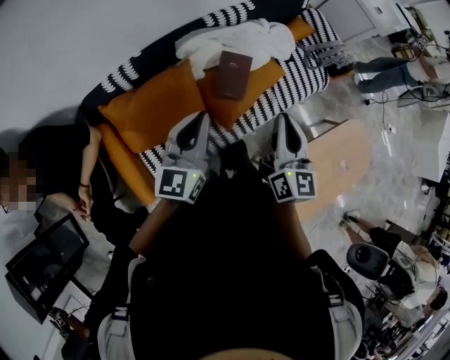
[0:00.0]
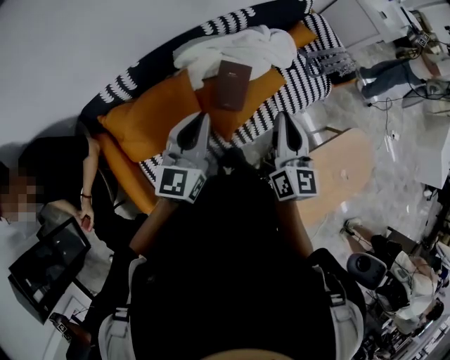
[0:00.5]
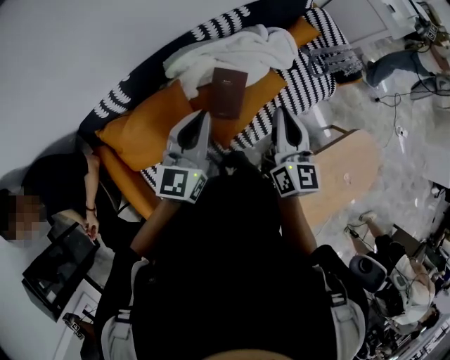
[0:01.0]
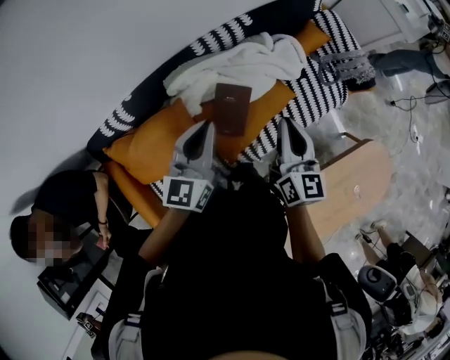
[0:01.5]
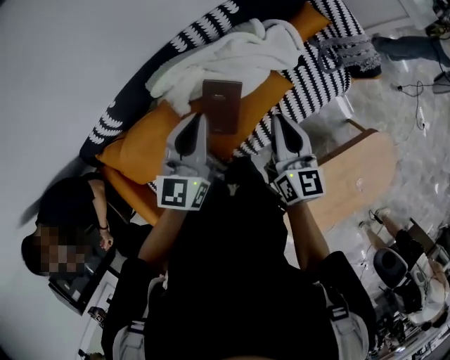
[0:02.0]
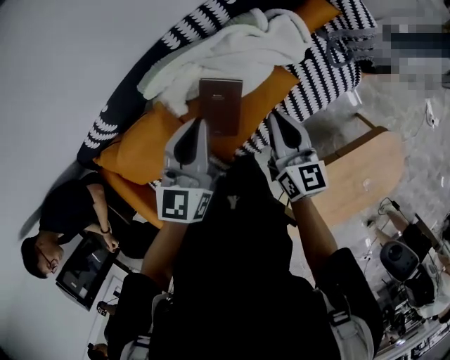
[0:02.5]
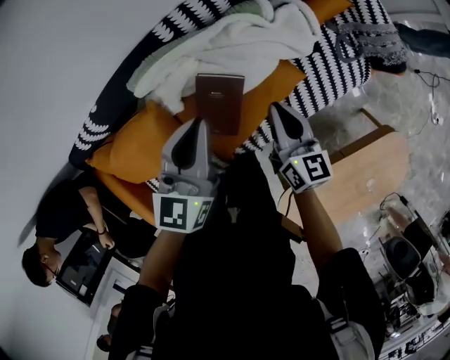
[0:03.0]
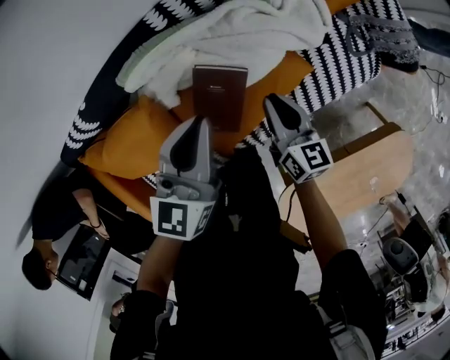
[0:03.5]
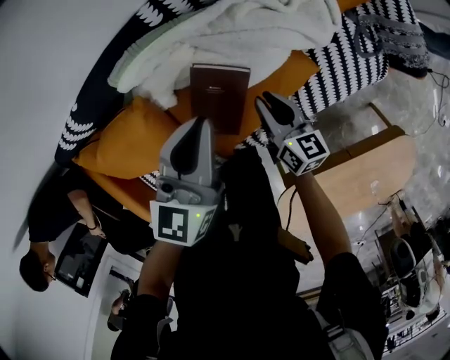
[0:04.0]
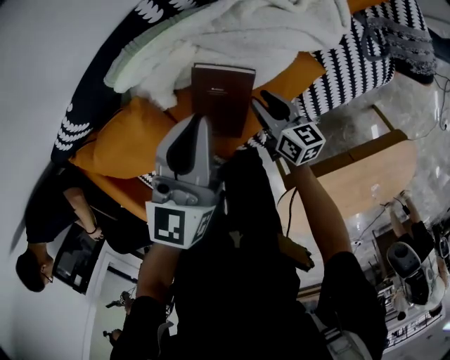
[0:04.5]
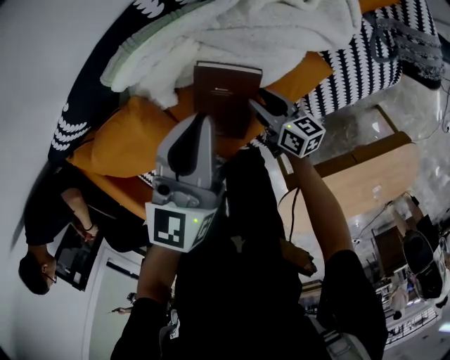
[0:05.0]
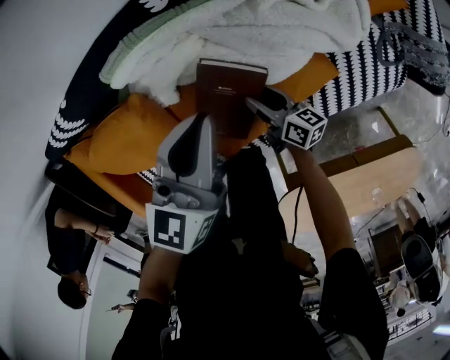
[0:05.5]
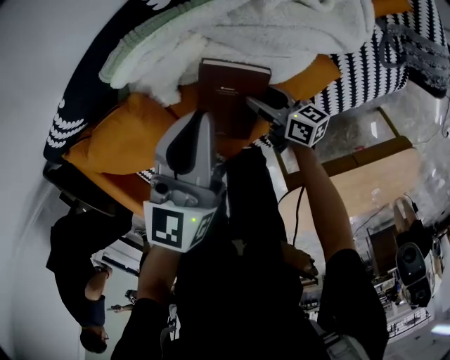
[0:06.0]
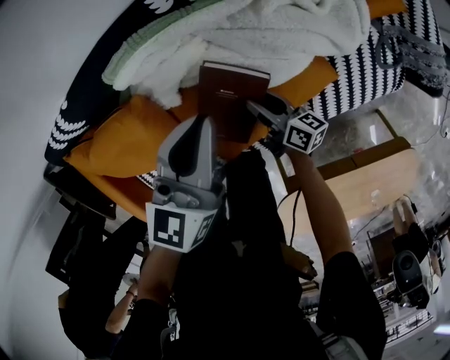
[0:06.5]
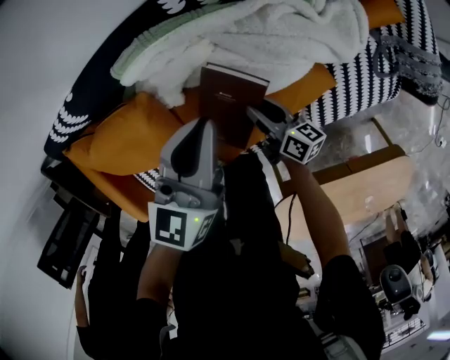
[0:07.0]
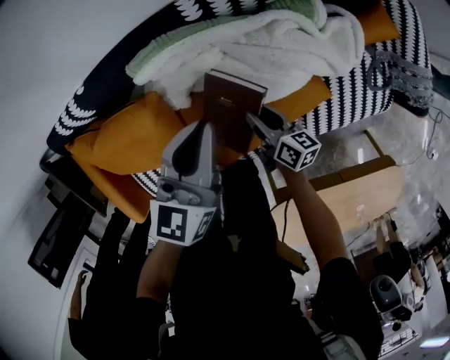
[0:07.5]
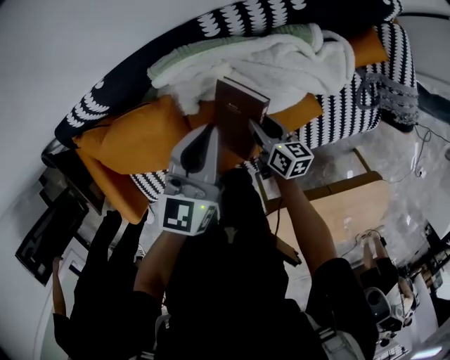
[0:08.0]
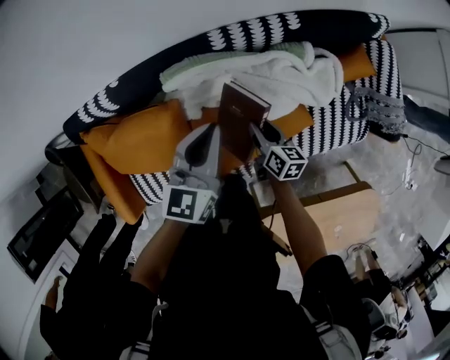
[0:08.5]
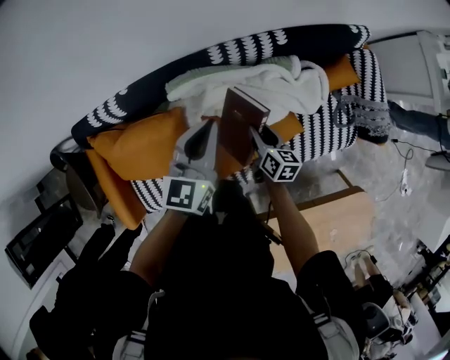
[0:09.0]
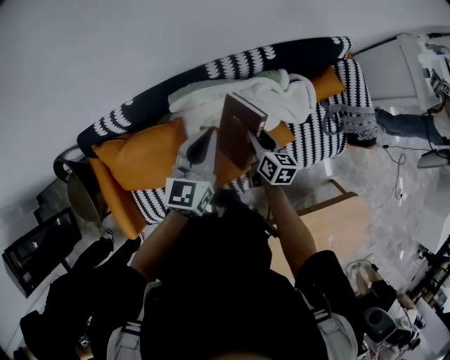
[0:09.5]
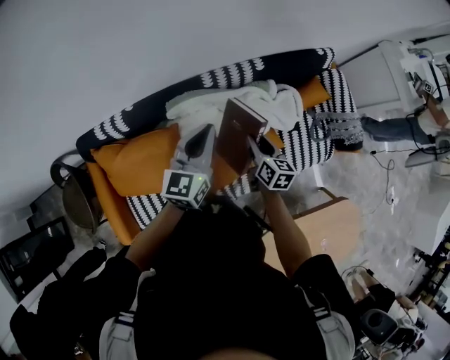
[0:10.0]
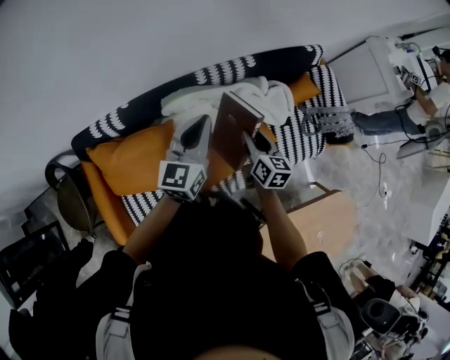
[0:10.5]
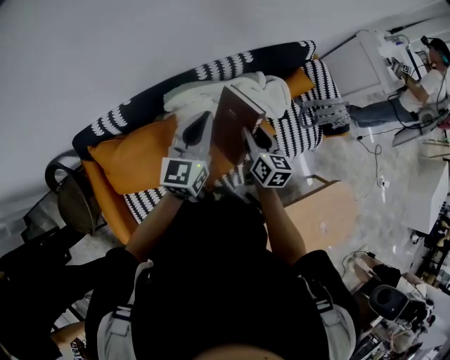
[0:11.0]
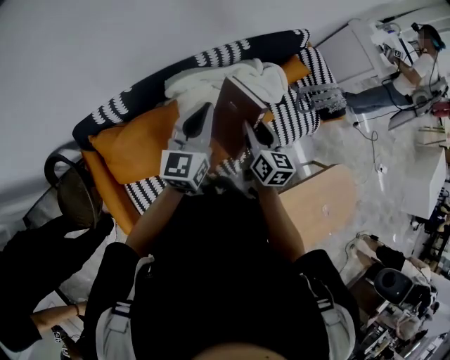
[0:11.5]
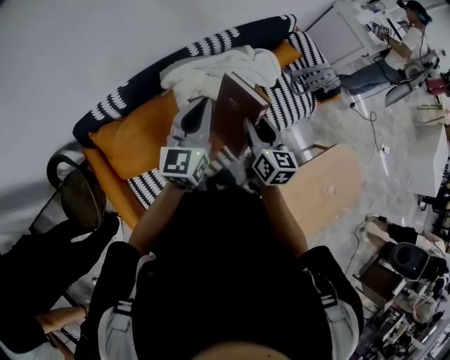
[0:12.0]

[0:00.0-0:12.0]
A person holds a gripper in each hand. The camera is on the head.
0:00.0 to 0:02.0: The left gripper is displaced forward and to the right by about 30 cm, while the right gripper goes approximately 30 cm forward and downward.
0:02.0 to 0:04.0: The left gripper moves downward, about 15 cm, while the right gripper travels downward by about 30 cm, and changes its angle by approximately 30 degrees.
0:04.0 to 0:06.0: The right gripper goes approximately 15 cm downward and to the left, swivels about 30 degrees, and opens. The left gripper is displaced downward by some 5 cm.
0:06.0 to 0:08.0: The right gripper shifts roughly 10 cm upward. The left gripper shifts roughly 5 cm upward.
0:08.0 to 0:10.0: The grippers both shift upward by some 20 cm. The right gripper changes its angle by approximately 20 degrees.
0:10.0 to 0:12.0: Both grippers travel together backward and upward, roughly 25 cm. The right gripper turns by roughly 20 degrees.

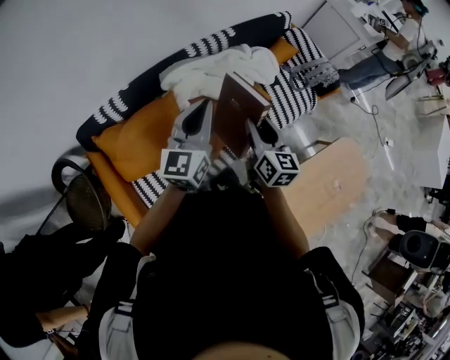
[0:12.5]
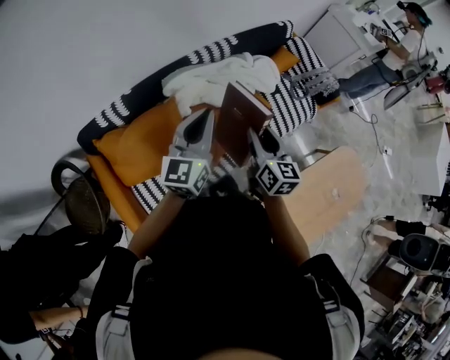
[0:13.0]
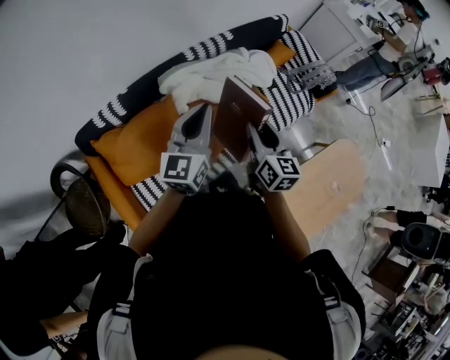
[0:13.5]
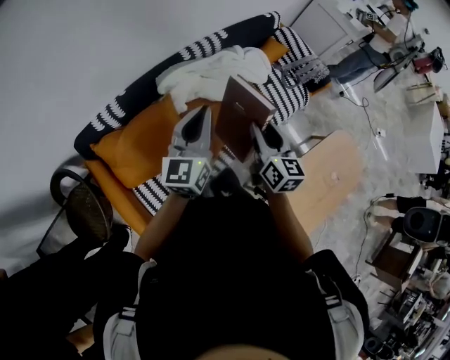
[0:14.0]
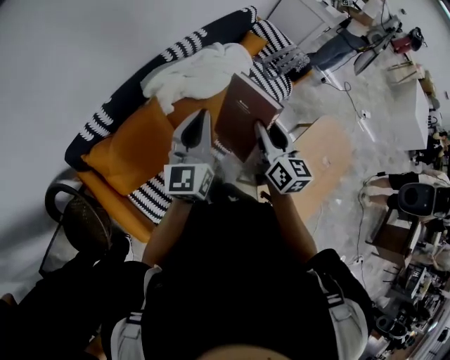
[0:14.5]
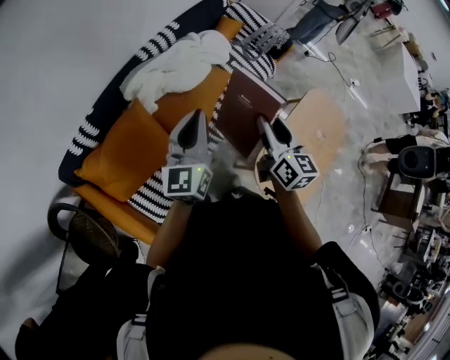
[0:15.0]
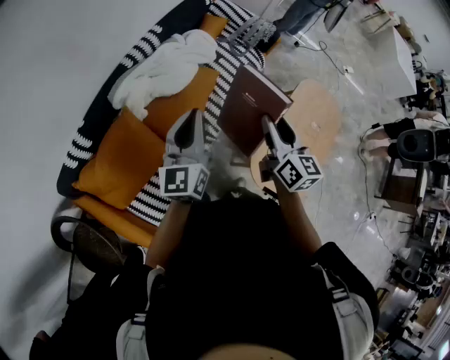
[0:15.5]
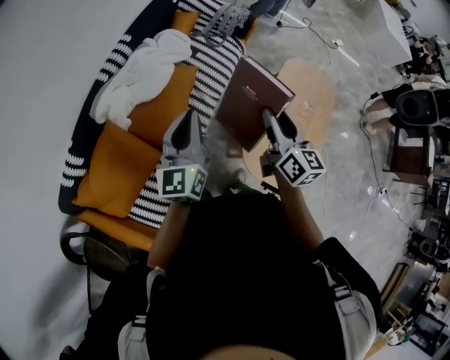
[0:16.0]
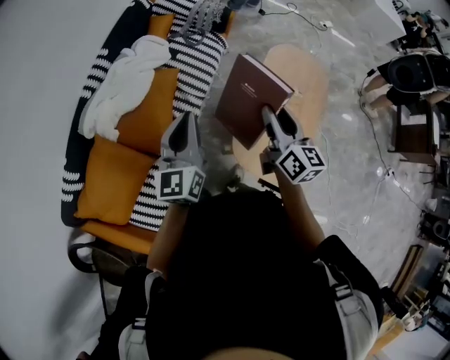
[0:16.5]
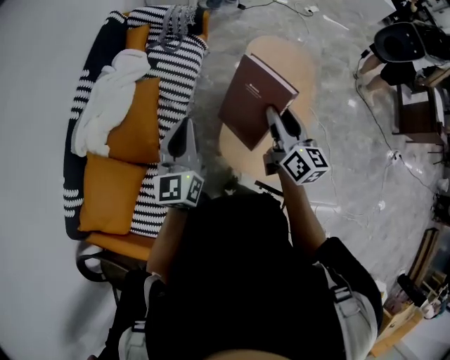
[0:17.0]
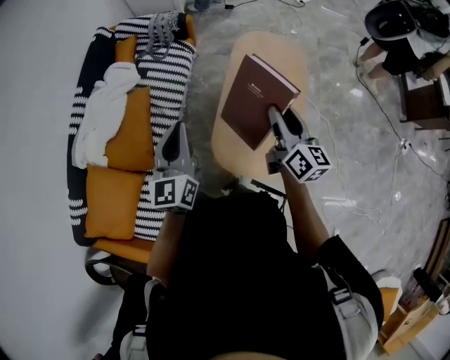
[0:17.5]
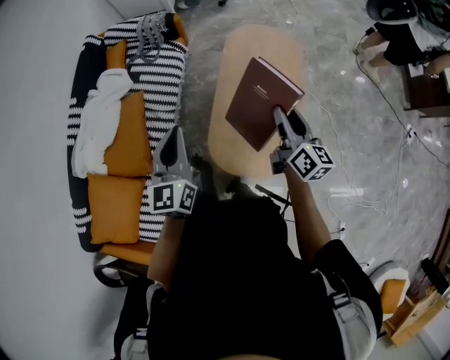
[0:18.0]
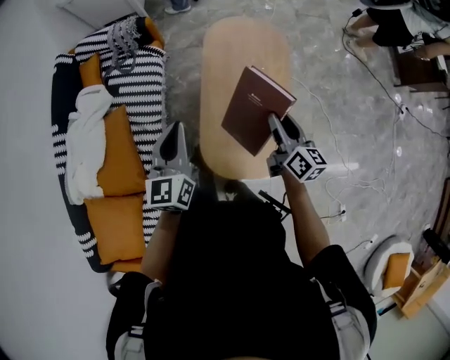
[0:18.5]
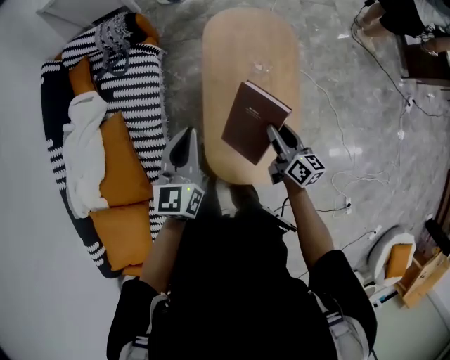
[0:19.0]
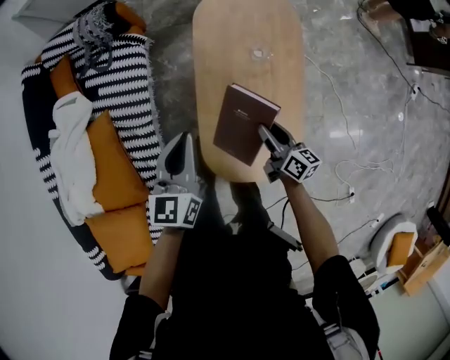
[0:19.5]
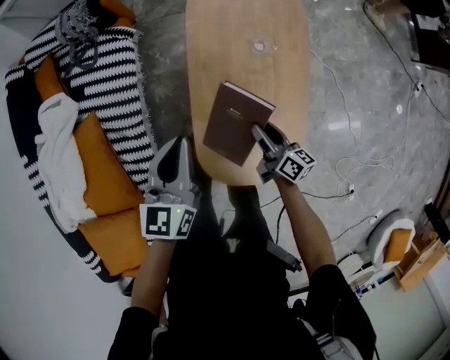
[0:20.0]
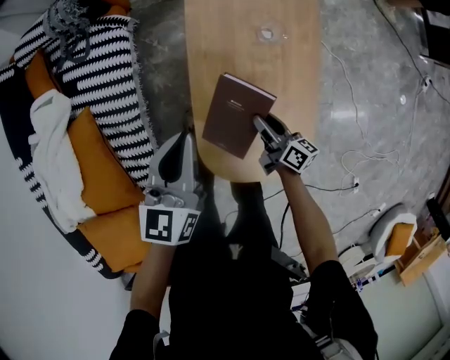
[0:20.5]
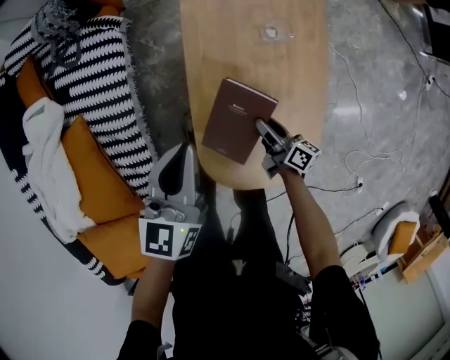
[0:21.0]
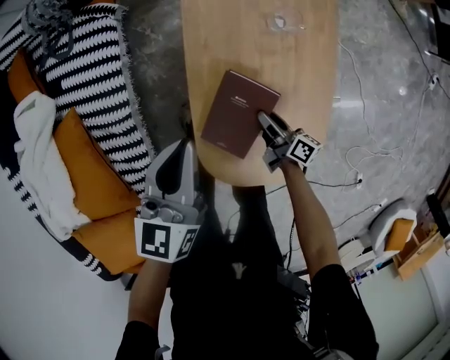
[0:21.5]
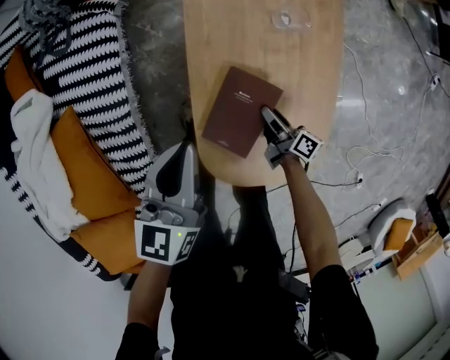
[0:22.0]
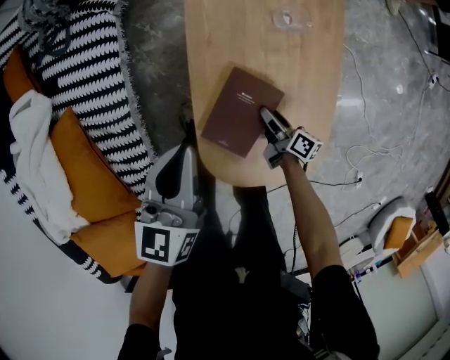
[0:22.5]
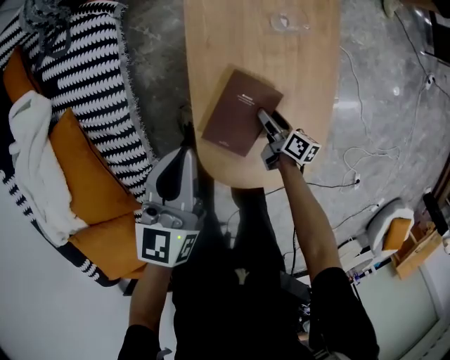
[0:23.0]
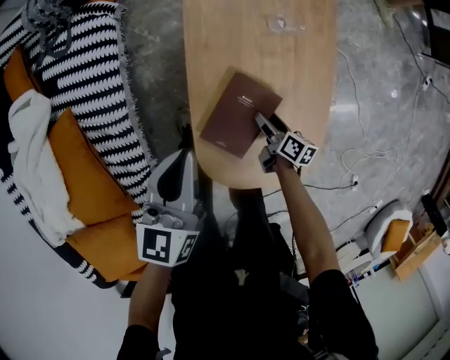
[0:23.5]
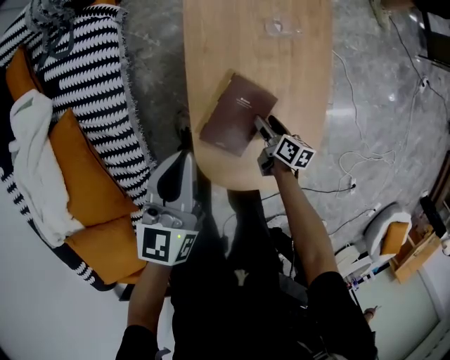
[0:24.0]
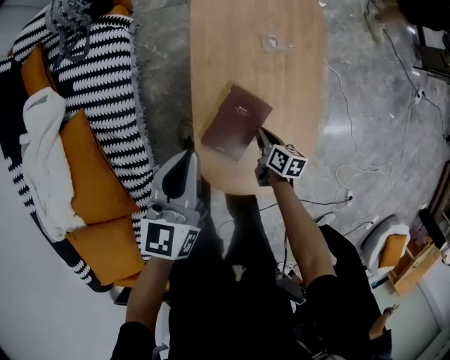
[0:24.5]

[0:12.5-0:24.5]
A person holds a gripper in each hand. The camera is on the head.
0:12.5 to 0:14.5: The left gripper is displaced backward by some 5 cm. Meanwhile the right gripper is displaced backward and upward by roughly 10 cm.
0:14.5 to 0:16.5: The grippers both shift to the right by some 30 cm. The right gripper swivels some 30 degrees, while the left gripper rotates roughly 20 degrees.
0:16.5 to 0:18.5: The left gripper goes approximately 30 cm to the right and forward, and swivels approximately 20 degrees. The right gripper shifts some 35 cm to the right and downward, and changes its angle by about 20 degrees.
0:18.5 to 0:20.5: The right gripper goes about 35 cm downward, and changes its angle by about 20 degrees. Meanwhile the left gripper is displaced downward by about 20 cm.
0:20.5 to 0:22.5: The right gripper travels downward by some 15 cm. The left gripper goes roughly 10 cm downward.
0:22.5 to 0:24.5: The right gripper turns by roughly 30 degrees, and closes its fingers. The left gripper moves upward, about 5 cm.

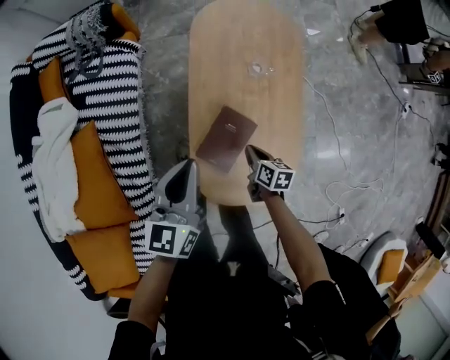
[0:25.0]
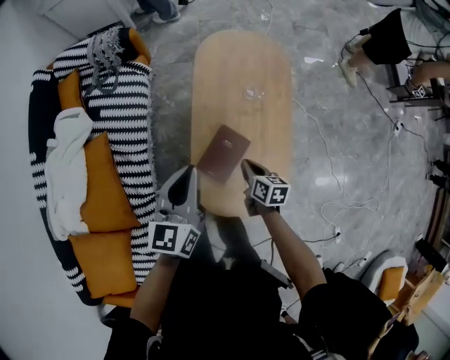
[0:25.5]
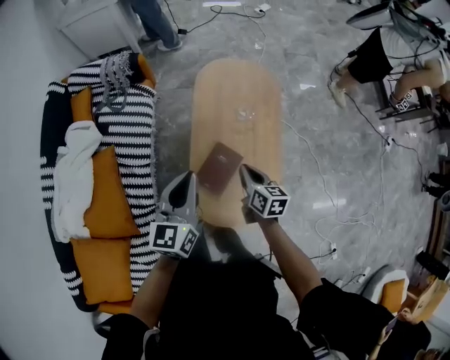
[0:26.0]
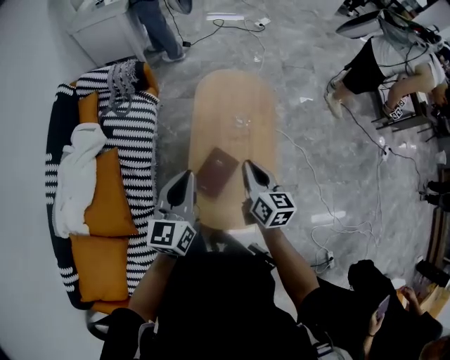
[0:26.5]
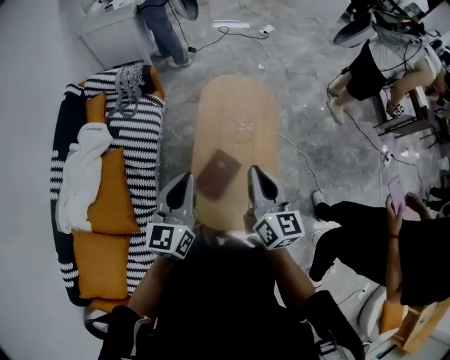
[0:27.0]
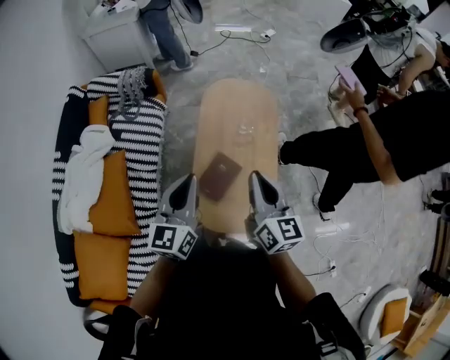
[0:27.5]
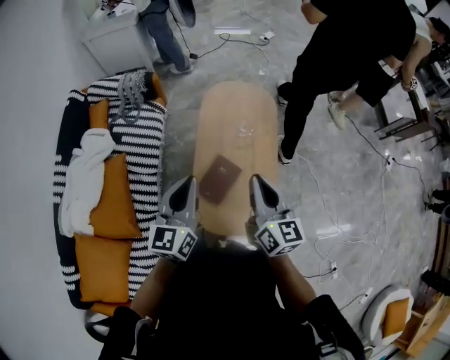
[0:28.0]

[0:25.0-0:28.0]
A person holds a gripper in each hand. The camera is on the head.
0:25.0 to 0:26.5: The right gripper moves upward, approximately 35 cm, and changes its angle by about 40 degrees. The left gripper goes about 15 cm upward.
0:26.5 to 0:28.0: The right gripper heads upward and backward, covering roughly 10 cm.
